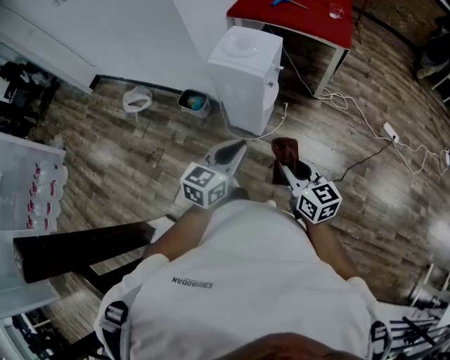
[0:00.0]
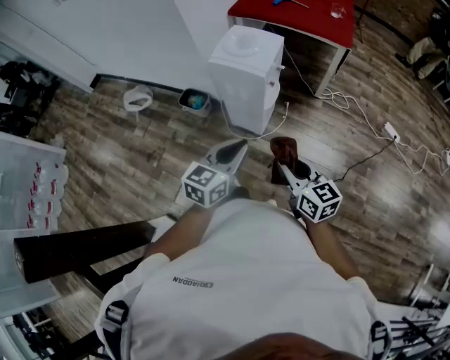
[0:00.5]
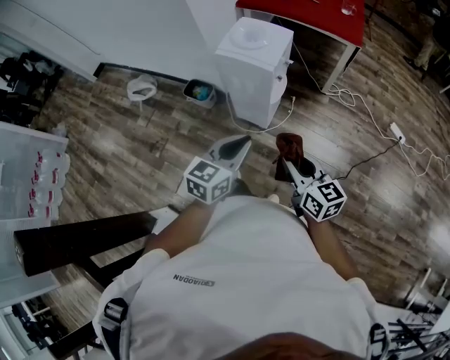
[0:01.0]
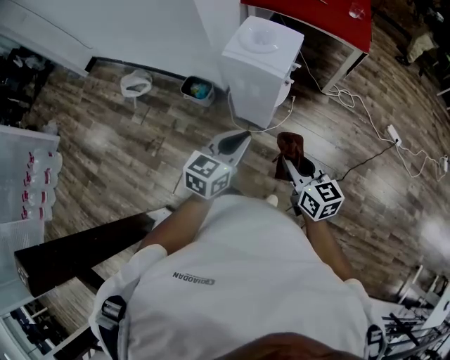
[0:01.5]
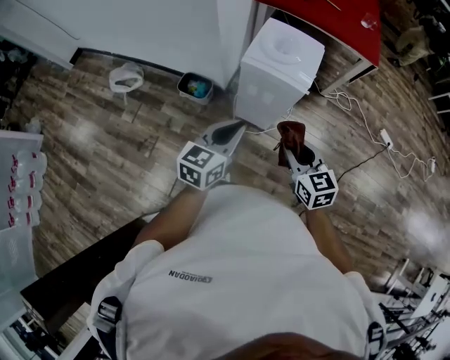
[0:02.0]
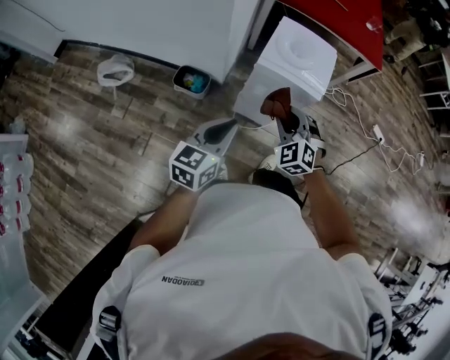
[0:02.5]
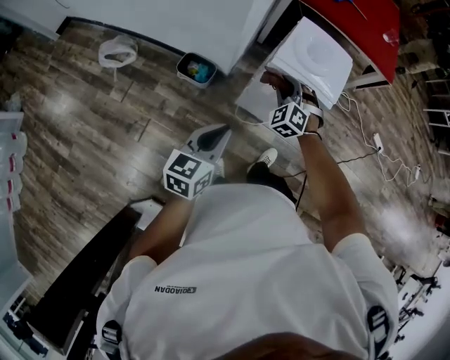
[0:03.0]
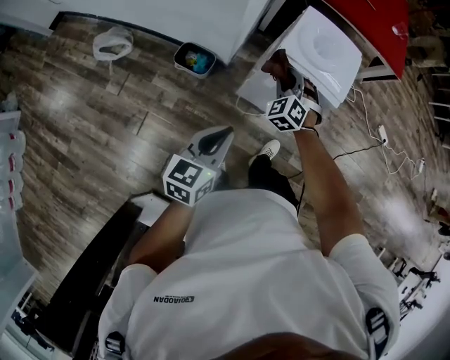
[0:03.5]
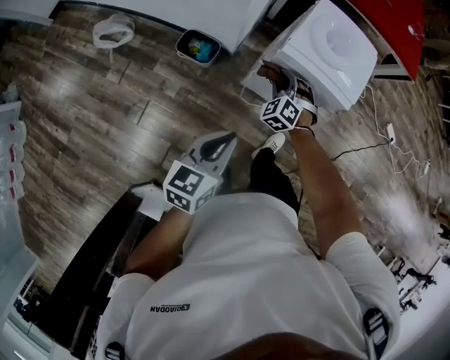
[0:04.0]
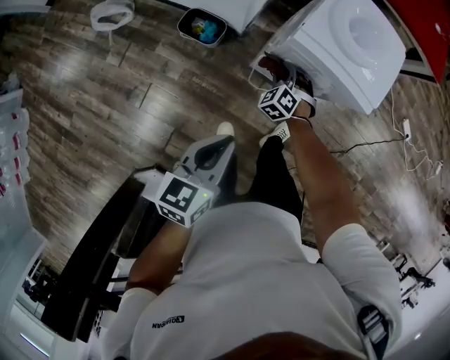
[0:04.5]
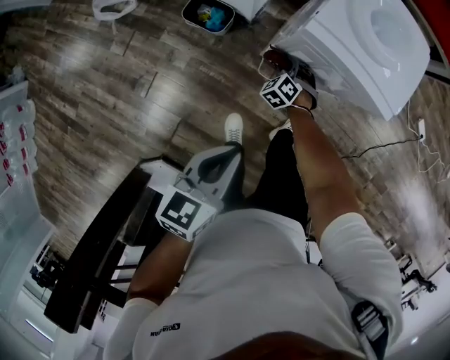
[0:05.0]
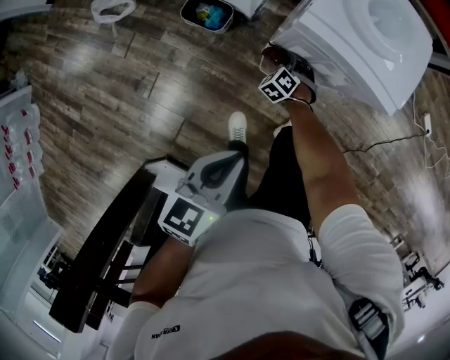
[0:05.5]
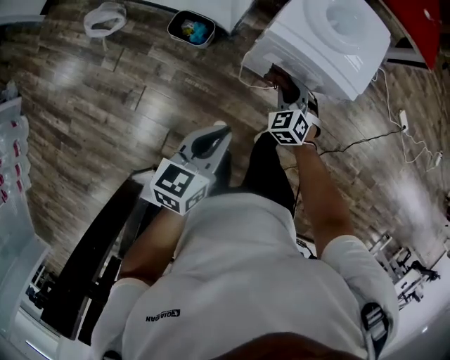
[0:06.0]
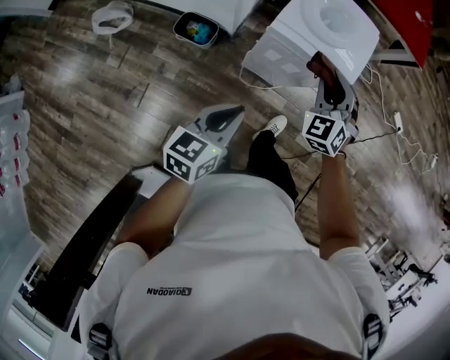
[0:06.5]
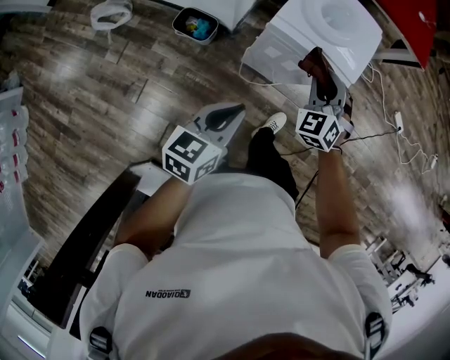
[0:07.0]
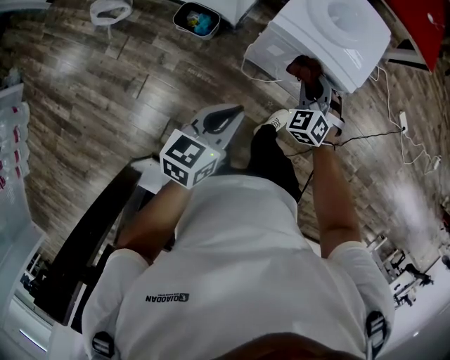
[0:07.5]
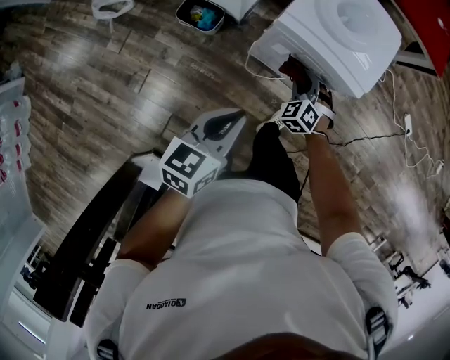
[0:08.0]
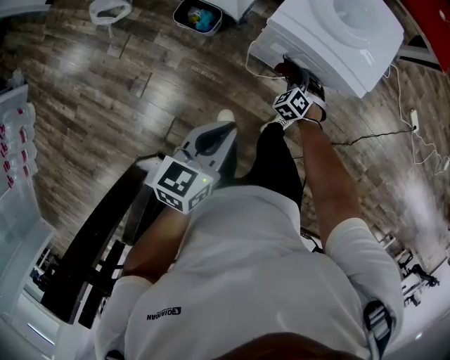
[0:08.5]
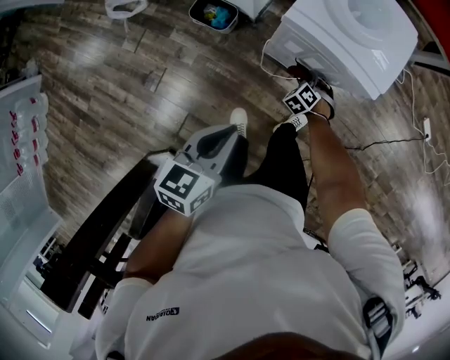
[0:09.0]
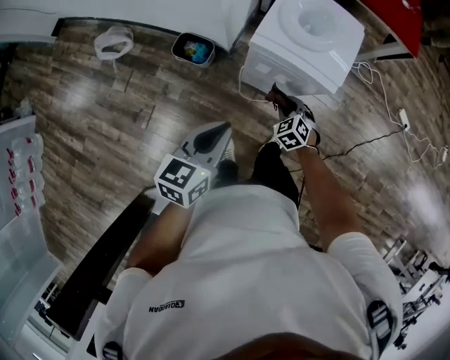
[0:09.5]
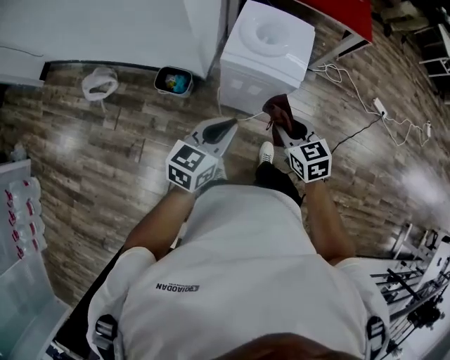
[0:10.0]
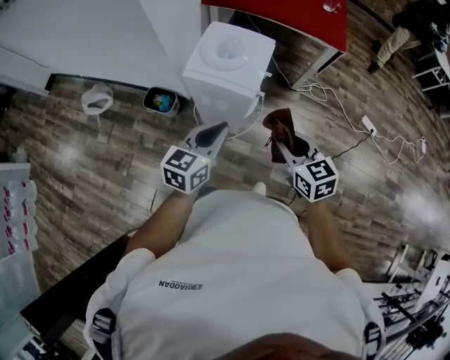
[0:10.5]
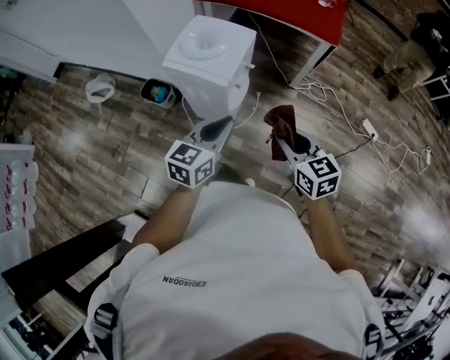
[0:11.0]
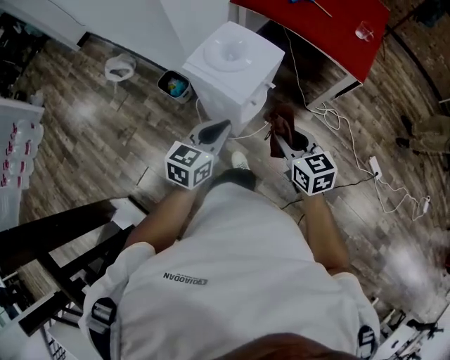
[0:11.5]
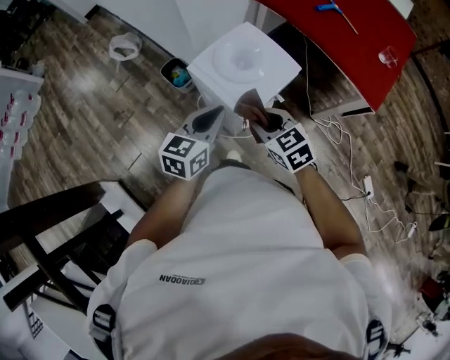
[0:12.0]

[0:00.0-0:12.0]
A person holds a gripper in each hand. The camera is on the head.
0:00.0 to 0:02.0: The left gripper shifts roughly 25 cm to the left and forward. The right gripper travels forward and to the left by about 20 cm.
0:02.0 to 0:04.0: The left gripper is displaced to the left and downward by approximately 15 cm. The right gripper is displaced forward, downward and to the left by some 35 cm, and rotates around the line of its fingers by about 50 degrees, counterclockwise from behind.
0:04.0 to 0:06.0: The right gripper heads to the right, covering approximately 10 cm, and travels downward and back again, about 25 cm each way.
0:06.0 to 0:08.0: The right gripper moves about 20 cm upward and comes back.
0:08.0 to 0:10.0: The left gripper shifts some 10 cm upward, and changes its angle by about 20 degrees, while the right gripper moves upward and backward, about 25 cm, and rolls clockwise, seen from behind, by about 50 degrees.
0:10.0 to 0:12.0: The left gripper moves about 20 cm, and changes its angle by approximately 40 degrees, while the right gripper swivels some 40 degrees.

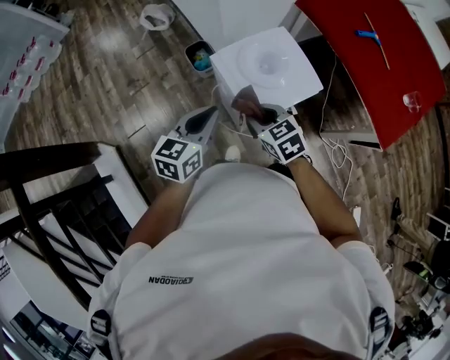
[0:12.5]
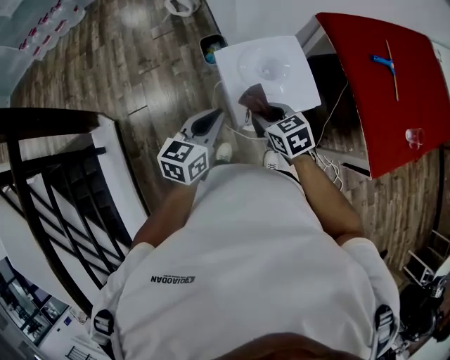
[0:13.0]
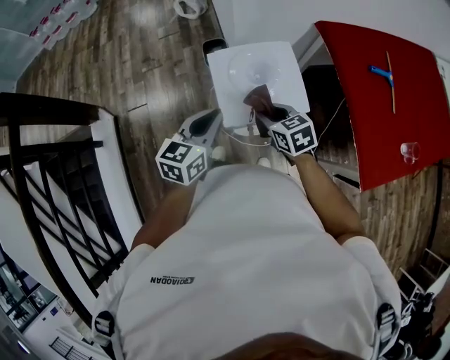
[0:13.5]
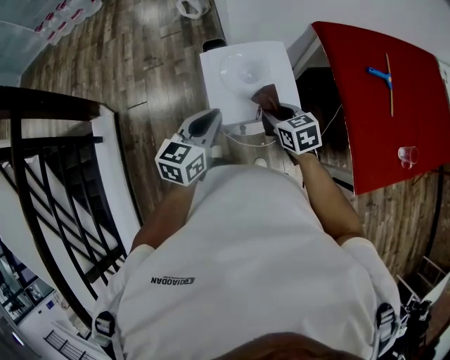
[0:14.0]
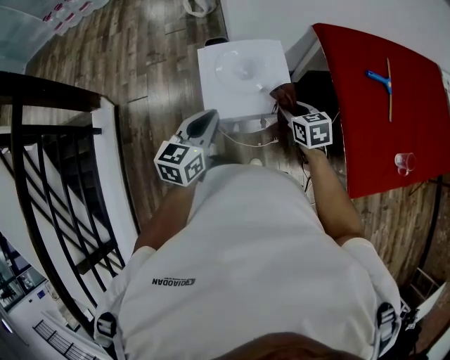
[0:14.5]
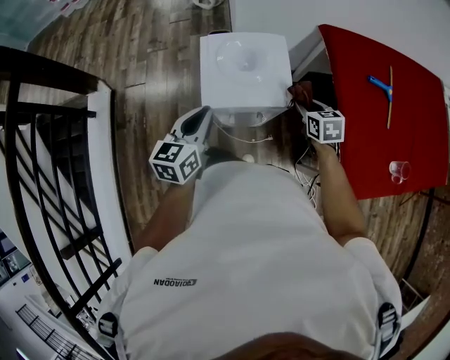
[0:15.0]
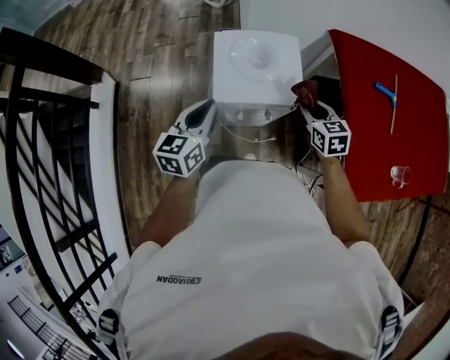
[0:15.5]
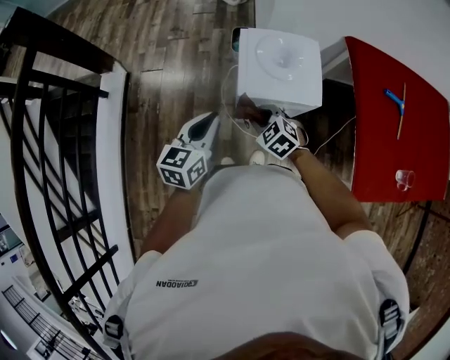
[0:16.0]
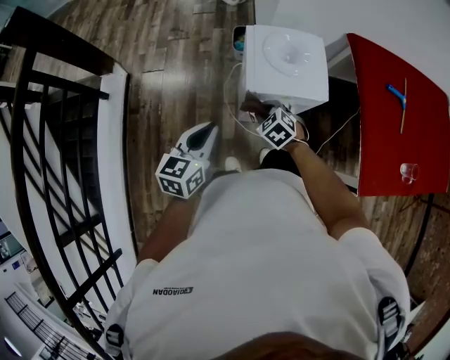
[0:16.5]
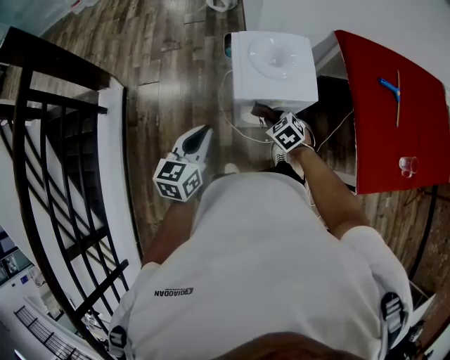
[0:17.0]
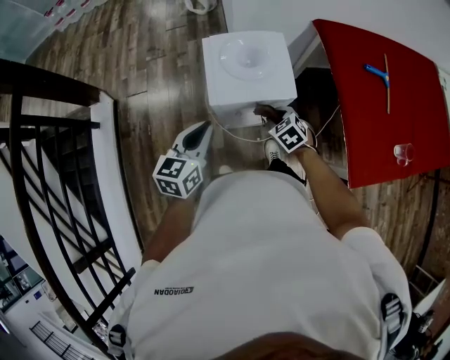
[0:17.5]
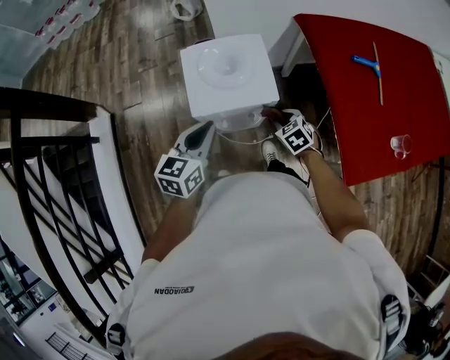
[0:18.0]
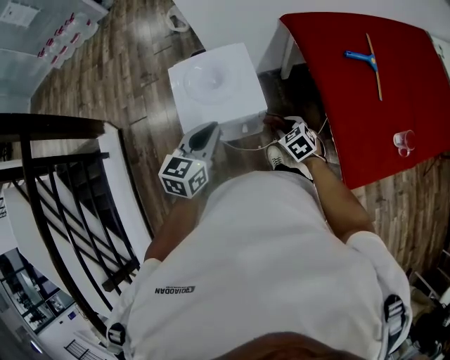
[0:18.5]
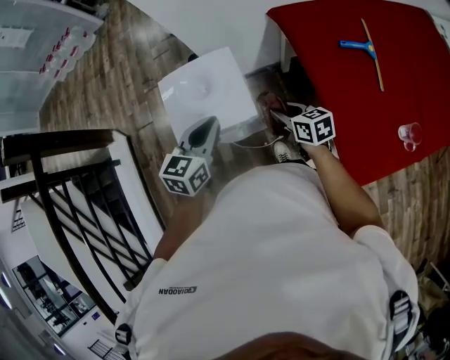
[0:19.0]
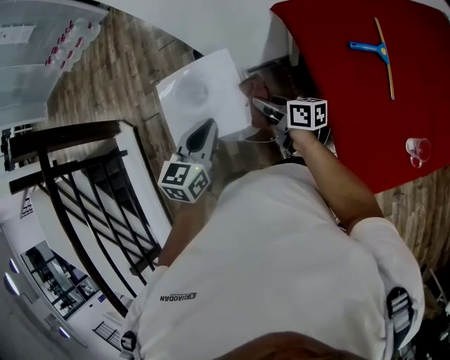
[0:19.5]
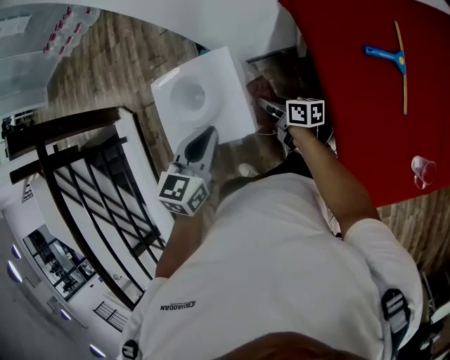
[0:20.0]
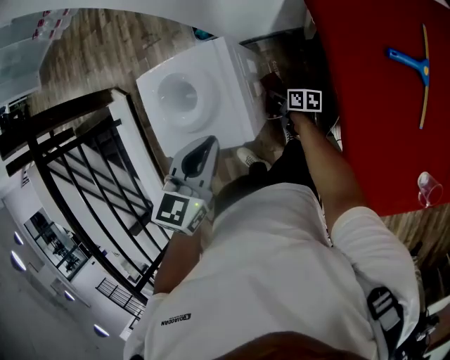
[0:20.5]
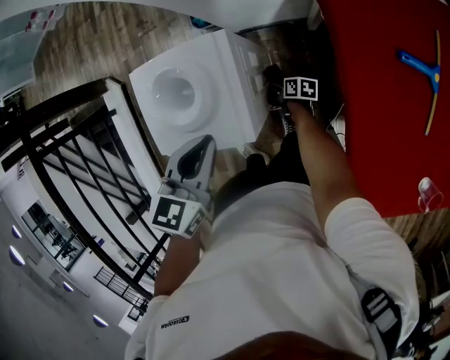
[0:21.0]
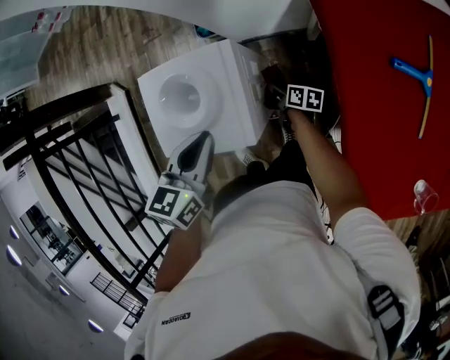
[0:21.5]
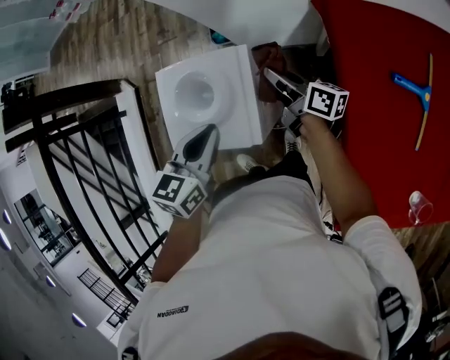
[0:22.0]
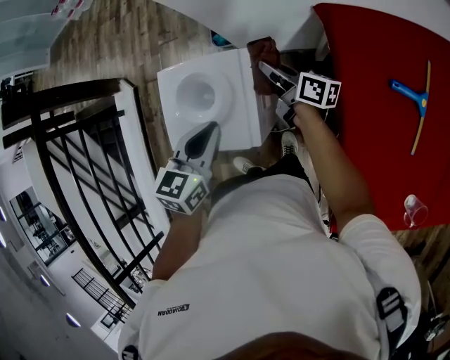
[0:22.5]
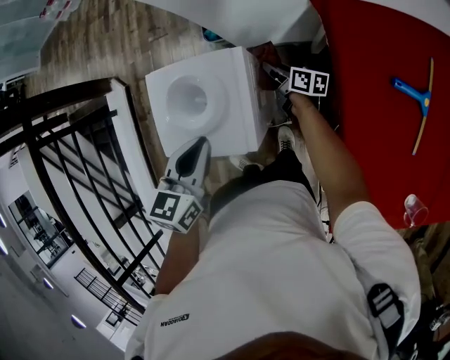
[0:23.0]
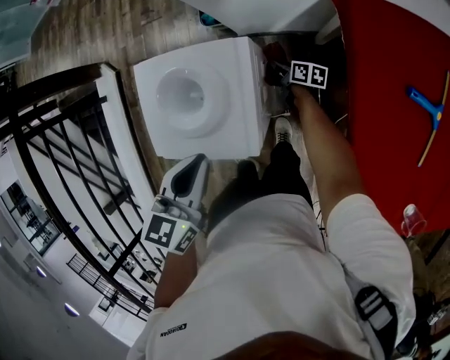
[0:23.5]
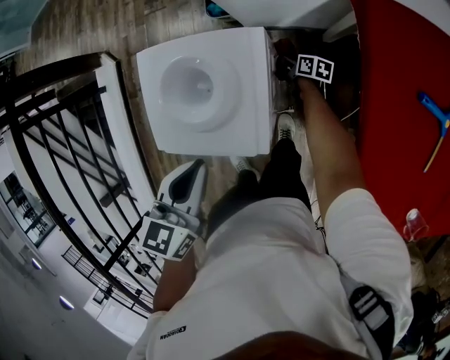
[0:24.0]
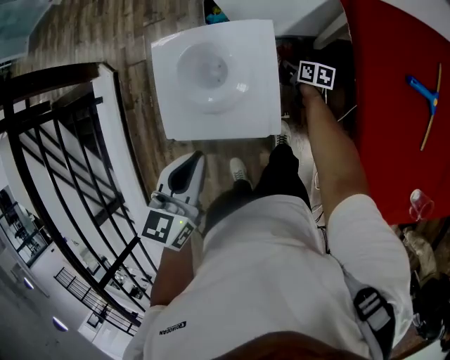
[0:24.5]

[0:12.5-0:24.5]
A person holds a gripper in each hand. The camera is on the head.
0:12.5 to 0:14.5: The right gripper travels to the right by approximately 25 cm. Meanwhile the left gripper shifts approximately 15 cm to the right, and turns by roughly 20 degrees.
0:14.5 to 0:16.5: The right gripper shifts some 20 cm to the left, and rotates around the line of its fingers by about 40 degrees, counterclockwise from behind. The left gripper moves to the left and backward, about 15 cm.
0:16.5 to 0:18.5: The right gripper goes approximately 25 cm to the right, and swivels approximately 30 degrees, while the left gripper shifts roughly 25 cm to the right and forward.
0:18.5 to 0:20.5: The right gripper heads downward and forward, covering roughly 25 cm, and twists some 60 degrees clockwise, seen from behind; the left gripper heads to the right and forward, covering some 15 cm.
0:20.5 to 0:22.5: The right gripper is displaced upward and forward by approximately 30 cm, and changes its angle by about 30 degrees.
0:22.5 to 0:24.5: The left gripper shifts about 10 cm to the left and backward. Meanwhile the right gripper shifts roughly 25 cm downward, and angles its fingers downward, by about 30 degrees.

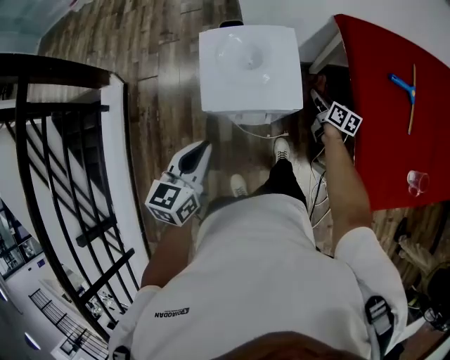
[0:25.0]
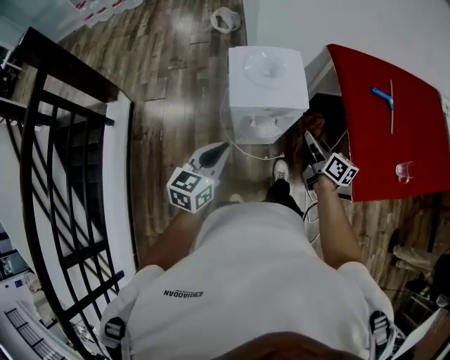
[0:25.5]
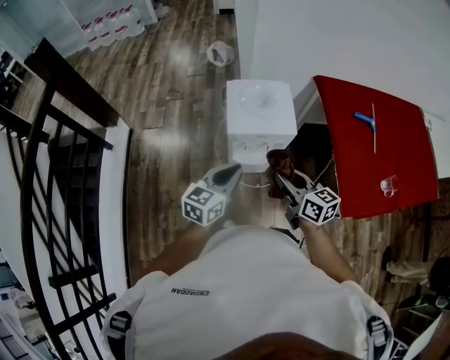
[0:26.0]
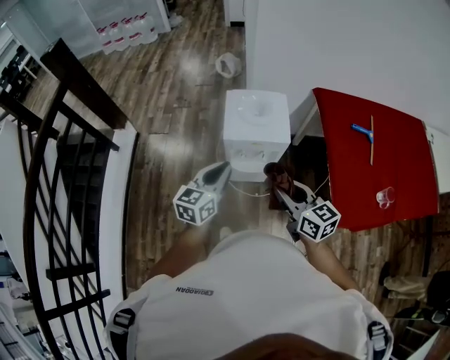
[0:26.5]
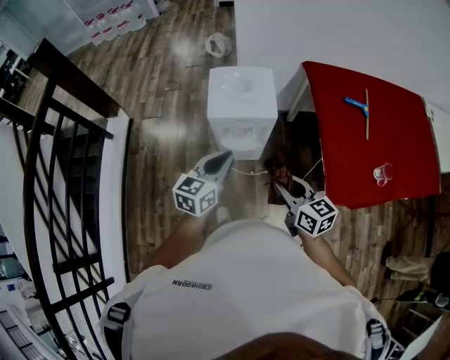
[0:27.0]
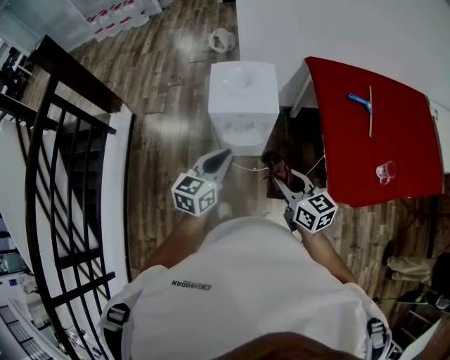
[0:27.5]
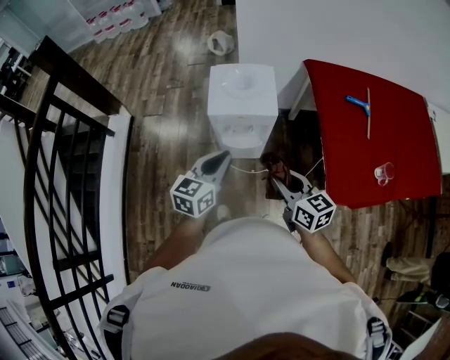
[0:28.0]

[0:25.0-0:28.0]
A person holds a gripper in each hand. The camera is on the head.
0:25.0 to 0:26.5: The left gripper moves upward and backward, roughly 15 cm; the right gripper heads upward, backward and to the left, covering roughly 50 cm, and changes its angle by roughly 40 degrees.
0:26.5 to 0:28.0: The right gripper changes place by approximately 5 cm; the left gripper shifts about 5 cm to the right.
